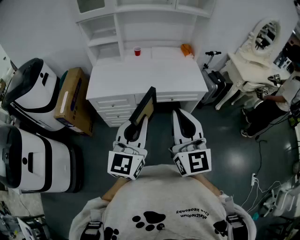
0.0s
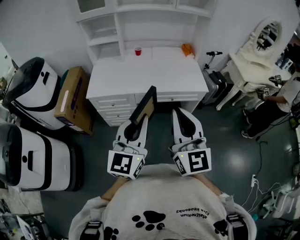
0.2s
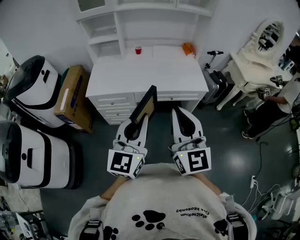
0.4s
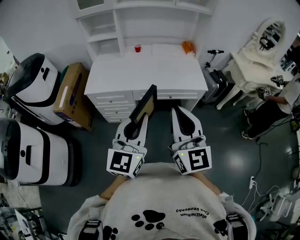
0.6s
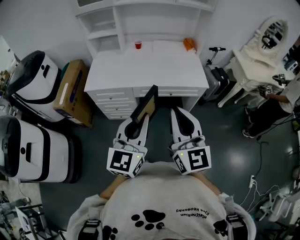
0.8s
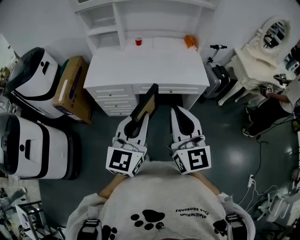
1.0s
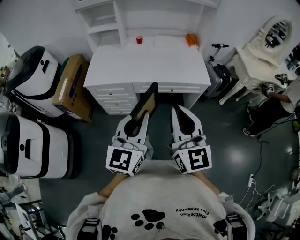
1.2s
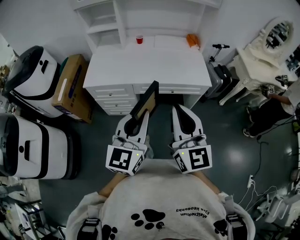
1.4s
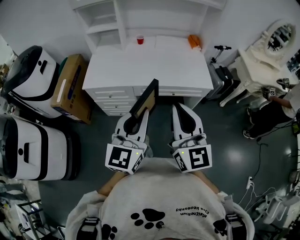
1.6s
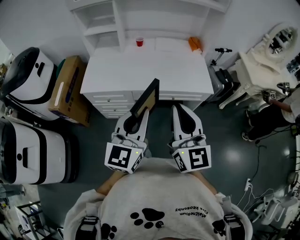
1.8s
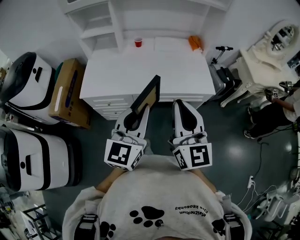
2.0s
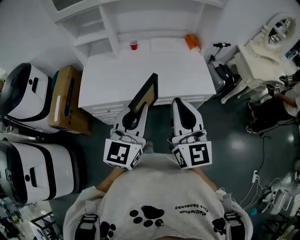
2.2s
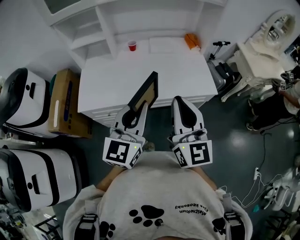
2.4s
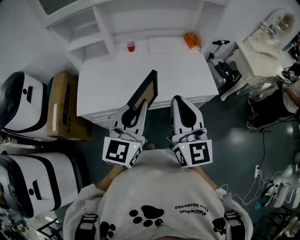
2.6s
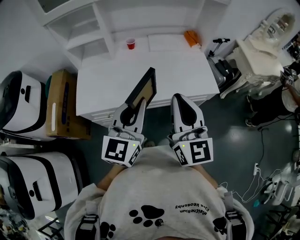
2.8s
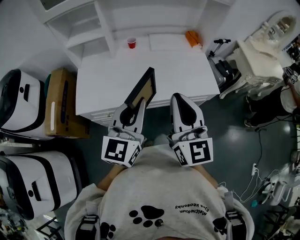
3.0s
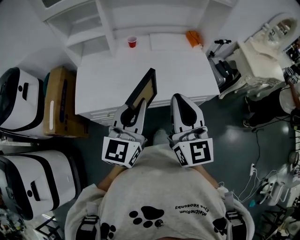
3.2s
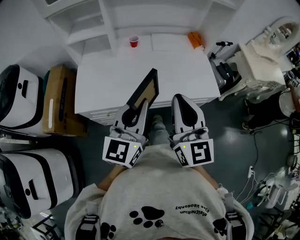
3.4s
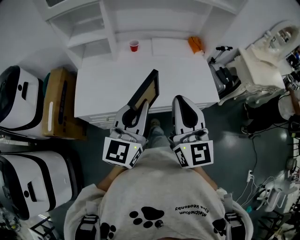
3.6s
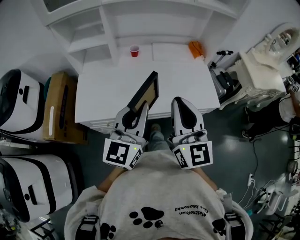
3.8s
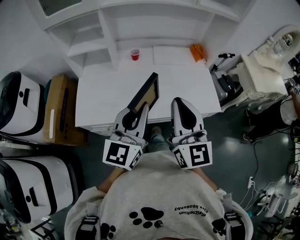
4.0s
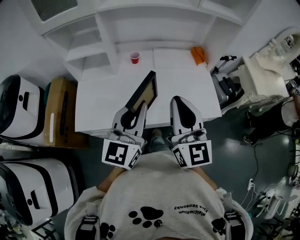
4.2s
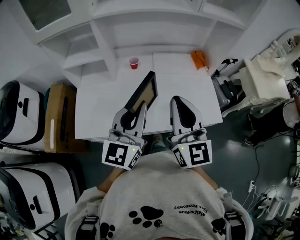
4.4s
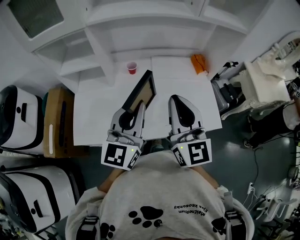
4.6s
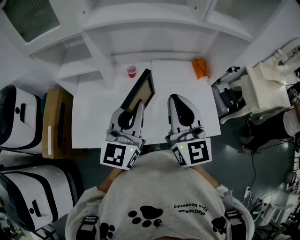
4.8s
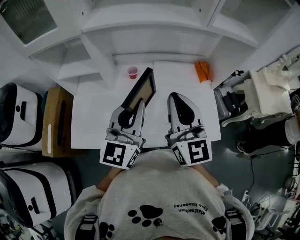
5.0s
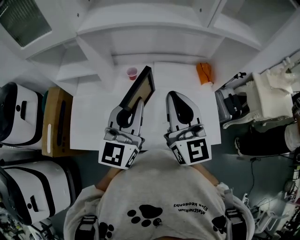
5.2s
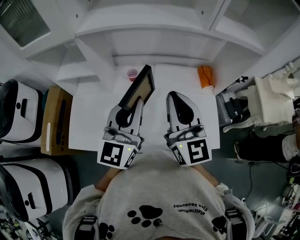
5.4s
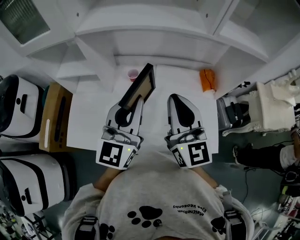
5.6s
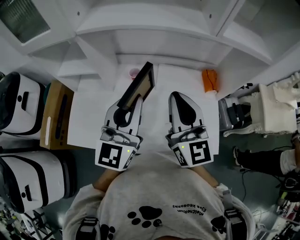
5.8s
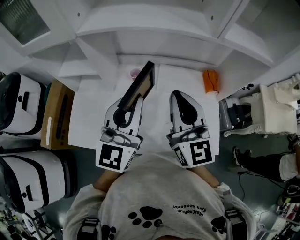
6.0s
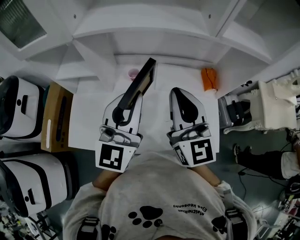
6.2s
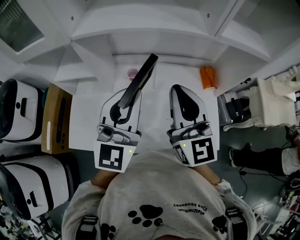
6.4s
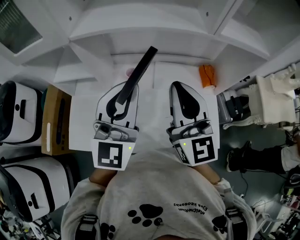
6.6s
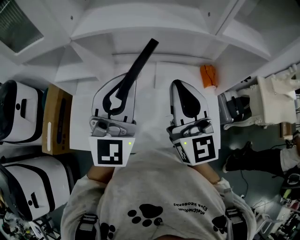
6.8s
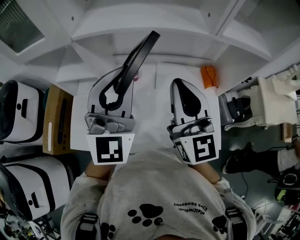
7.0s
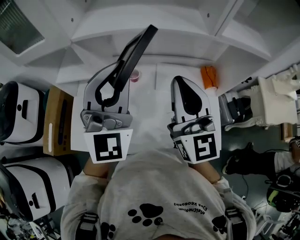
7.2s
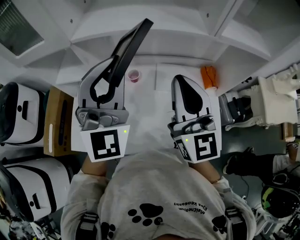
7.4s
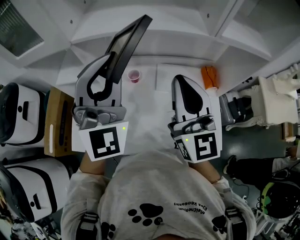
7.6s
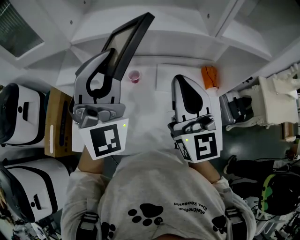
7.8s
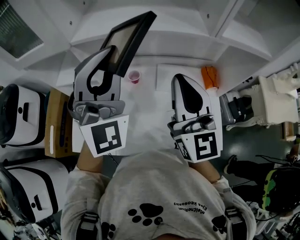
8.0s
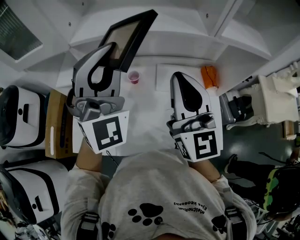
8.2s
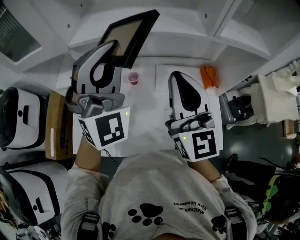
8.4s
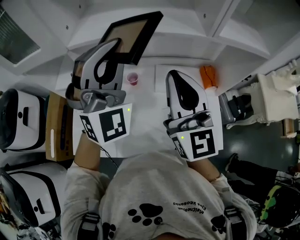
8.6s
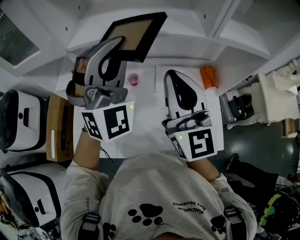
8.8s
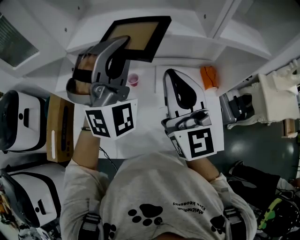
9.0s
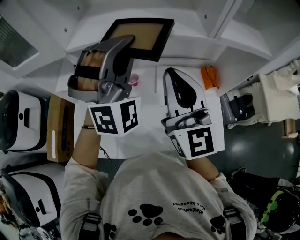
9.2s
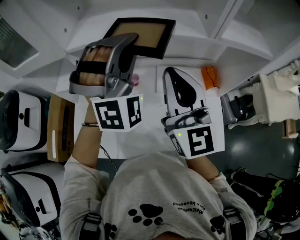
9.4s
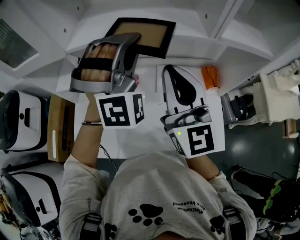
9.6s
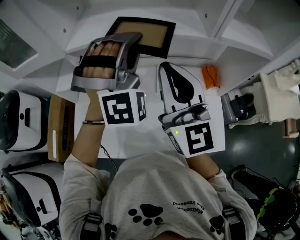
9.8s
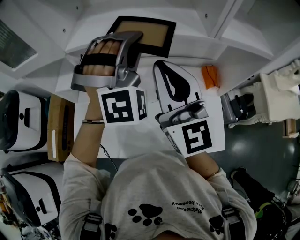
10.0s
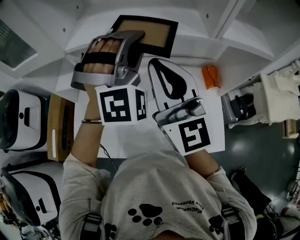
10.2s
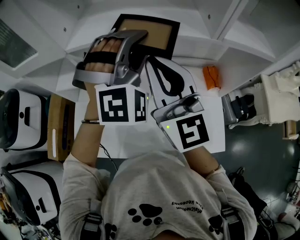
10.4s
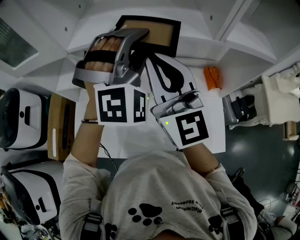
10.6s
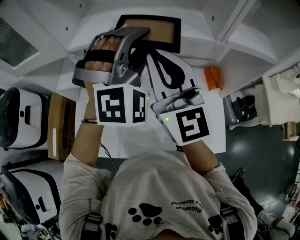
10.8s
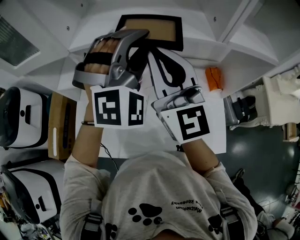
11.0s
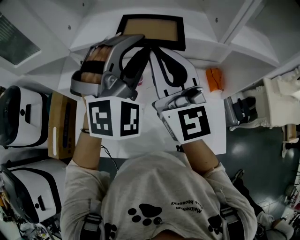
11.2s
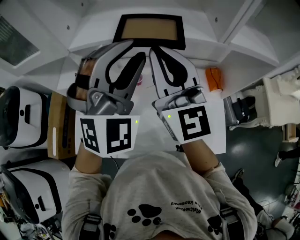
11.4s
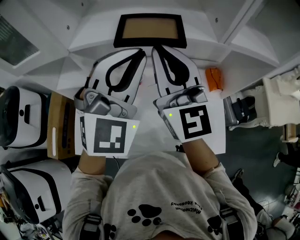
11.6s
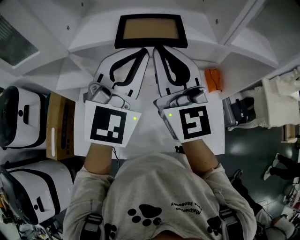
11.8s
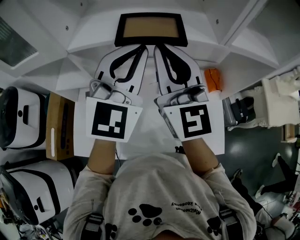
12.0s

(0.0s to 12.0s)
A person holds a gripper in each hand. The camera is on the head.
0.0s - 1.6s: The grippers both shift forward by approximately 5 cm.
1.6s - 3.0s: Both grippers move forward and to the left, about 25 cm.
3.0s - 4.4s: The grippers both shift forward by about 15 cm.
4.4s - 6.0s: Both grippers travel together forward, about 20 cm.
6.0s - 7.6s: The left gripper travels upward and forward by approximately 10 cm, and rolls clockwise, seen from behind, by about 40 degrees; the right gripper moves approximately 5 cm.
7.6s - 9.0s: The left gripper is displaced forward by about 5 cm, and changes its angle by about 30 degrees.
9.0s - 10.4s: The left gripper ends up roughly 5 cm from where it was, and opens its fingers; the right gripper changes place by approximately 5 cm.
10.4s - 12.0s: The left gripper twists about 50 degrees counterclockwise, seen from behind, and closes.

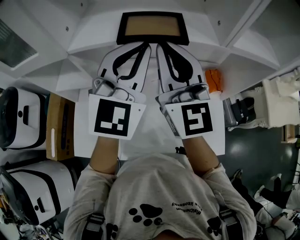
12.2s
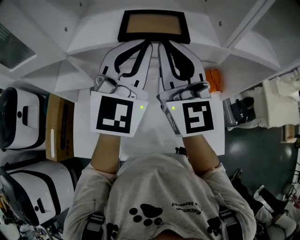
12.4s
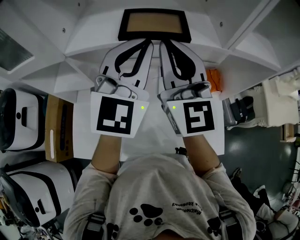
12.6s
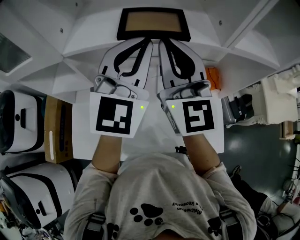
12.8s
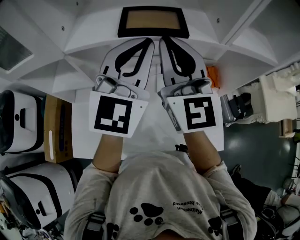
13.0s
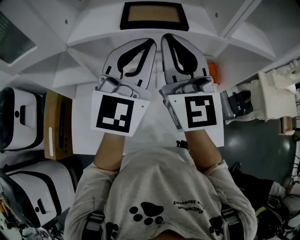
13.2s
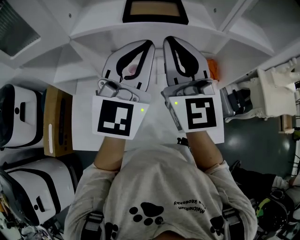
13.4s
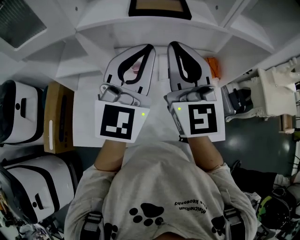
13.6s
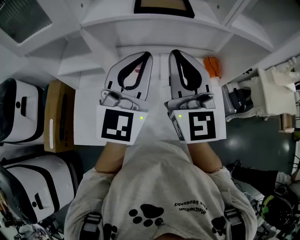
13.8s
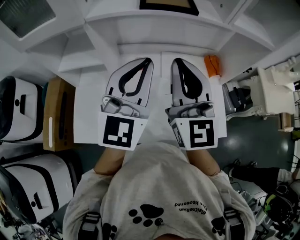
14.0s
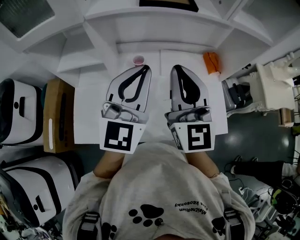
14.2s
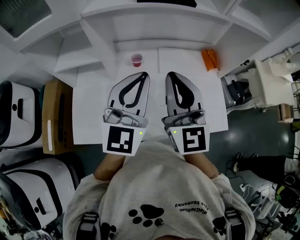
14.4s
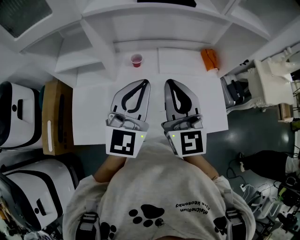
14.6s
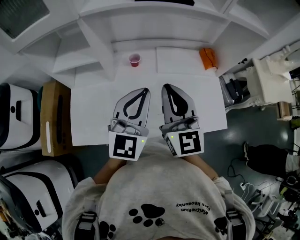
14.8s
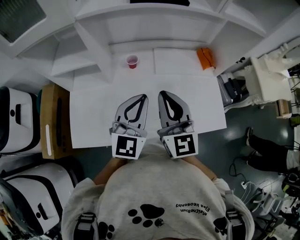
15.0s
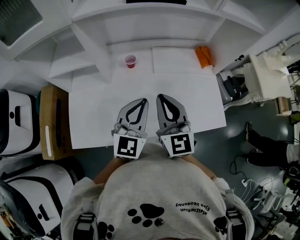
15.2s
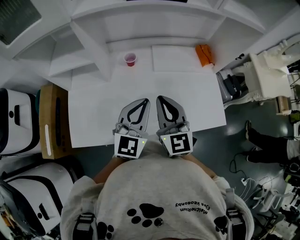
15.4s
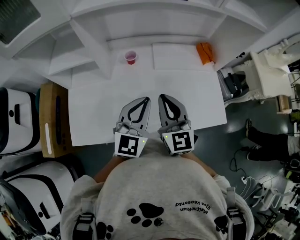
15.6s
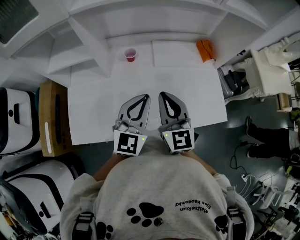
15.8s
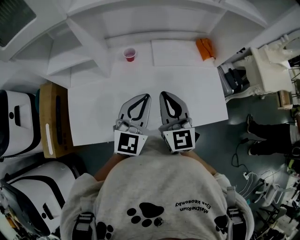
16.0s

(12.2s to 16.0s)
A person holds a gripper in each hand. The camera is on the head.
12.2s - 13.4s: The grippers move only a little.
13.4s - 14.8s: Both grippers travel together downward and backward, roughly 20 cm.
14.8s - 16.0s: Both grippers travel together downward, some 5 cm.

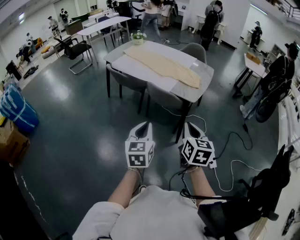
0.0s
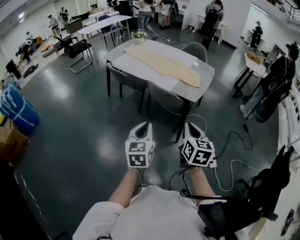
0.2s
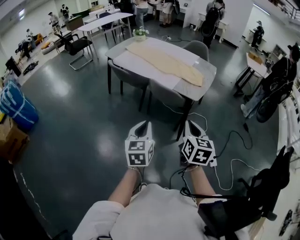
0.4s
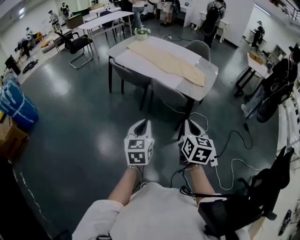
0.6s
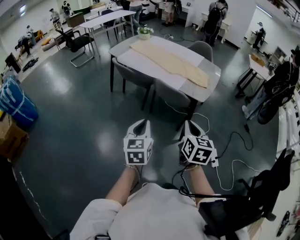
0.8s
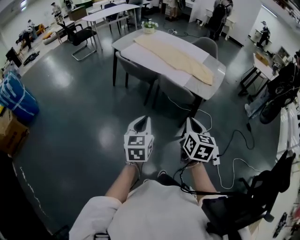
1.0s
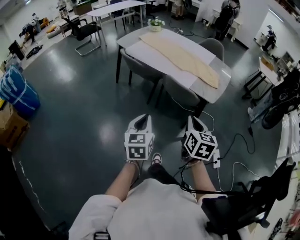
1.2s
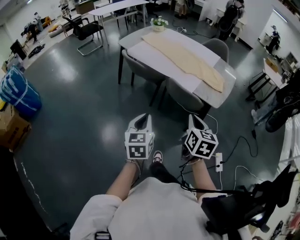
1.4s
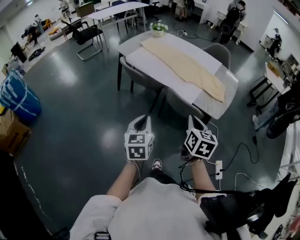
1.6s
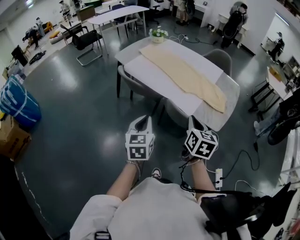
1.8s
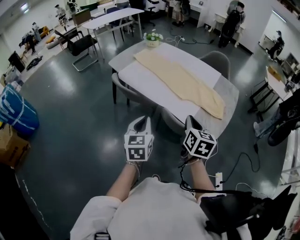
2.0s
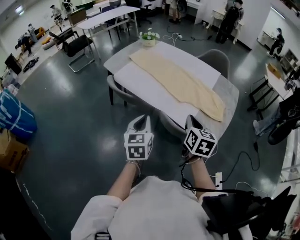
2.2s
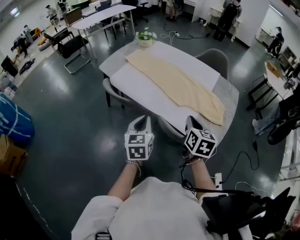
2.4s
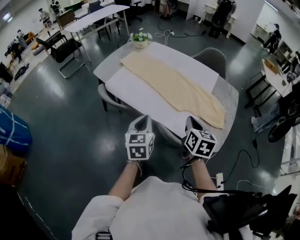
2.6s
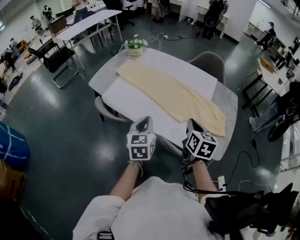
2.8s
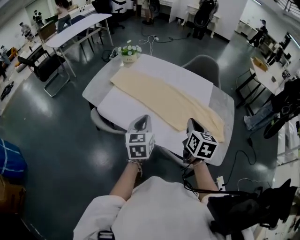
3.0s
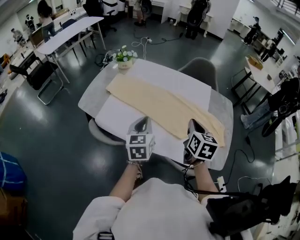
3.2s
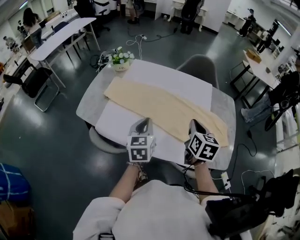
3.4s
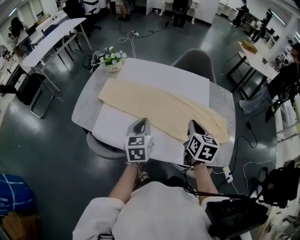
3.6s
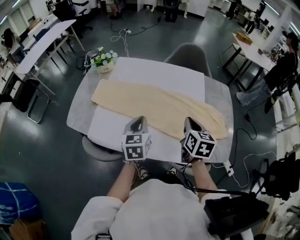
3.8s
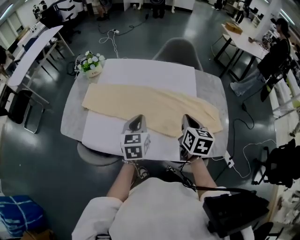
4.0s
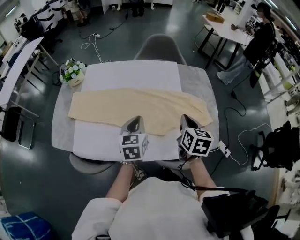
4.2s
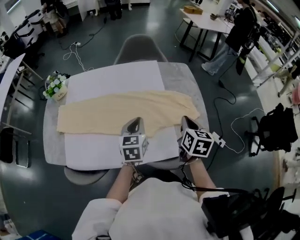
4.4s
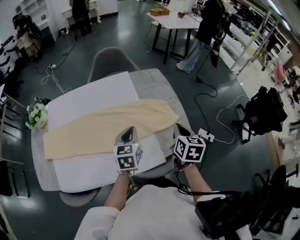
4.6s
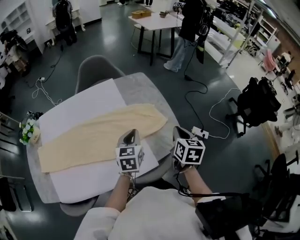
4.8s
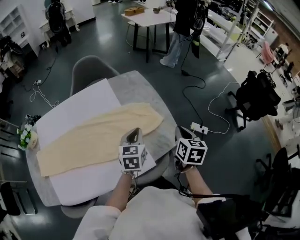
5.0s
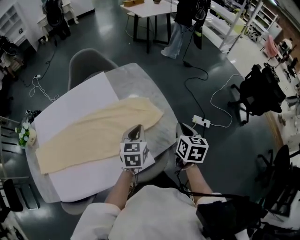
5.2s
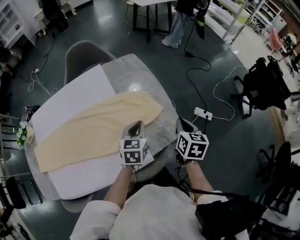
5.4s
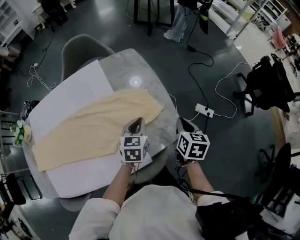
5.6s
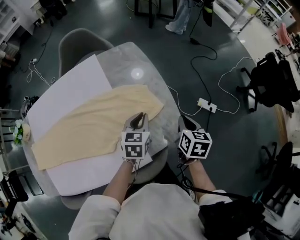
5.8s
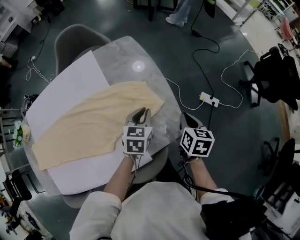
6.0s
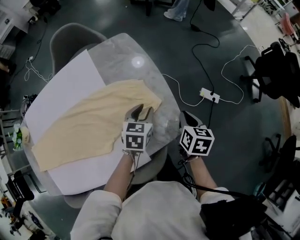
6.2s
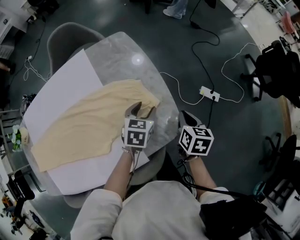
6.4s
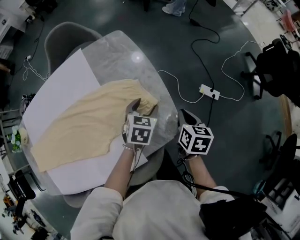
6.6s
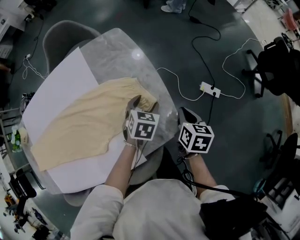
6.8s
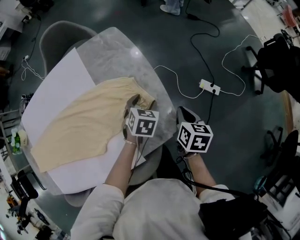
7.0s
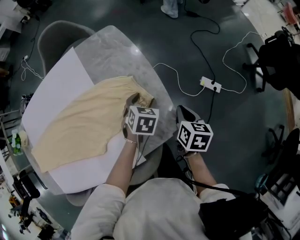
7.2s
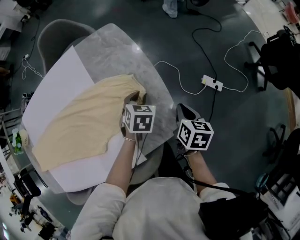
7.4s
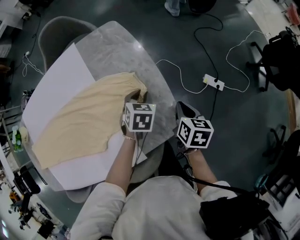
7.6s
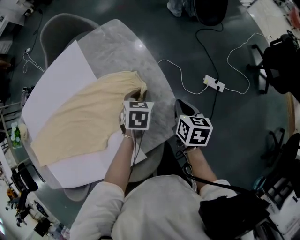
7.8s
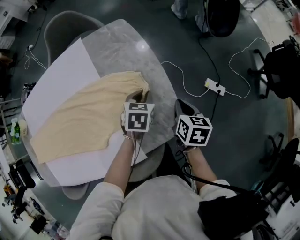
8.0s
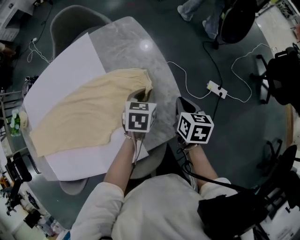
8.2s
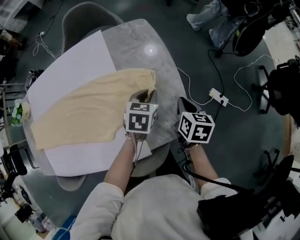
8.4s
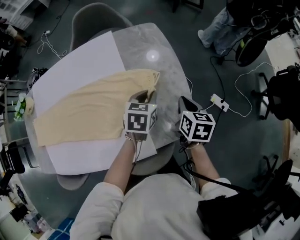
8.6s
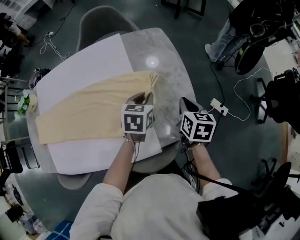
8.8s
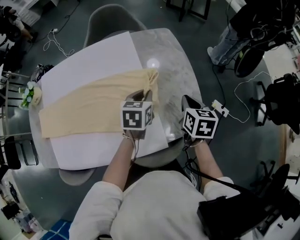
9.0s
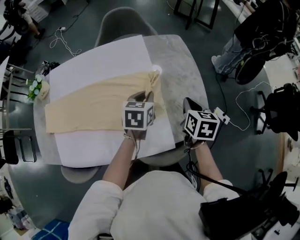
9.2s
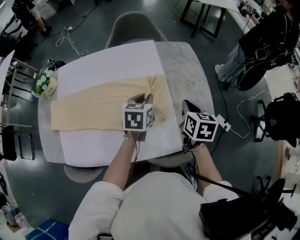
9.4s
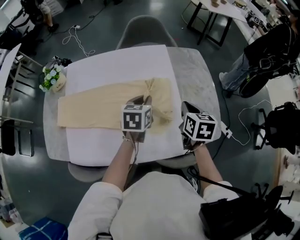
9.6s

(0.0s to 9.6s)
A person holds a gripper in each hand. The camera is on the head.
0.0s - 1.6s: The grippers both shift forward and to the left by approximately 25 cm.
1.6s - 3.2s: The two grippers travel together, forward, about 50 cm.
3.2s - 4.8s: The left gripper moves roughly 35 cm, and swivels roughly 50 degrees, while the right gripper changes place by roughly 30 cm, and changes its angle by roughly 40 degrees.
4.8s - 6.4s: The two grippers go approximately 25 cm downward, forward and to the right. The left gripper swivels some 30 degrees, and opens up.
6.4s - 8.0s: The left gripper moves some 5 cm, and closes up. Meanwhile the right gripper shifts by approximately 5 cm.
8.0s - 9.6s: Both grippers travel together to the left and upward, roughly 40 cm. The left gripper swivels about 30 degrees; the right gripper rotates roughly 20 degrees.
